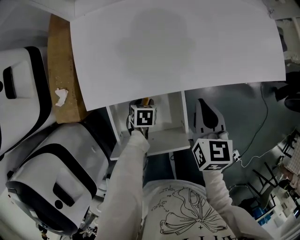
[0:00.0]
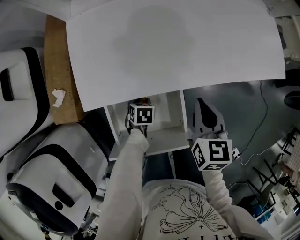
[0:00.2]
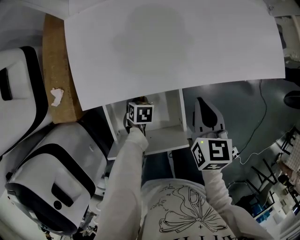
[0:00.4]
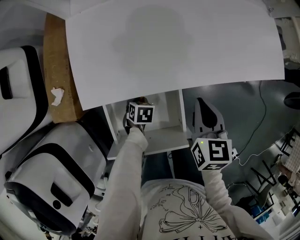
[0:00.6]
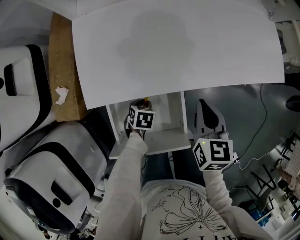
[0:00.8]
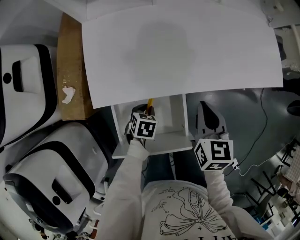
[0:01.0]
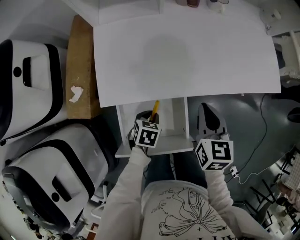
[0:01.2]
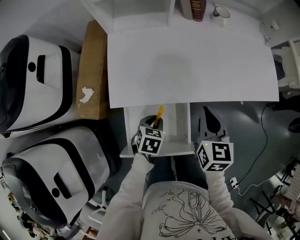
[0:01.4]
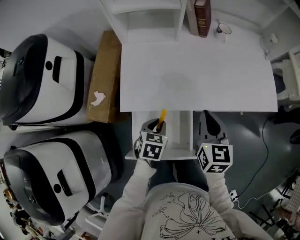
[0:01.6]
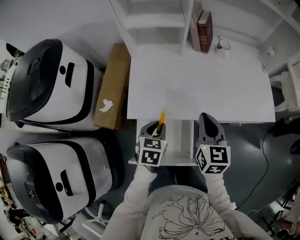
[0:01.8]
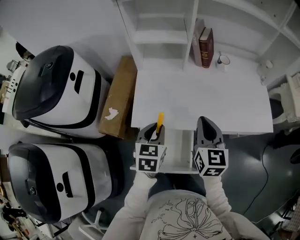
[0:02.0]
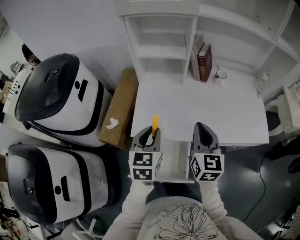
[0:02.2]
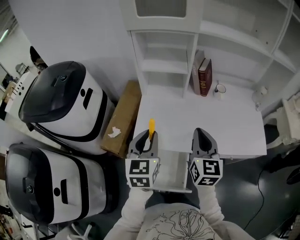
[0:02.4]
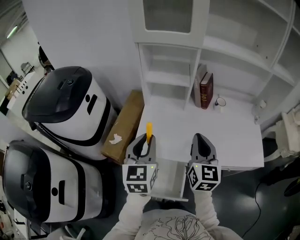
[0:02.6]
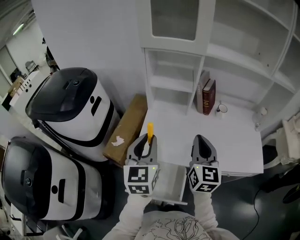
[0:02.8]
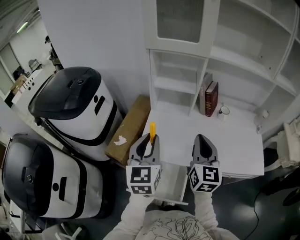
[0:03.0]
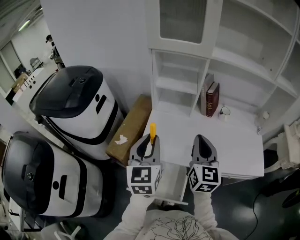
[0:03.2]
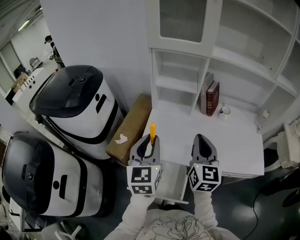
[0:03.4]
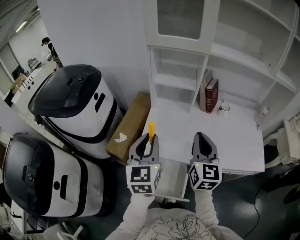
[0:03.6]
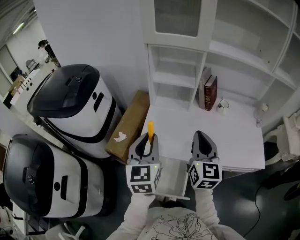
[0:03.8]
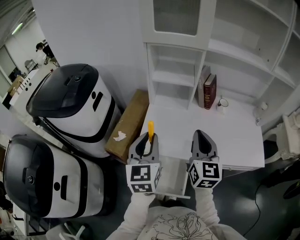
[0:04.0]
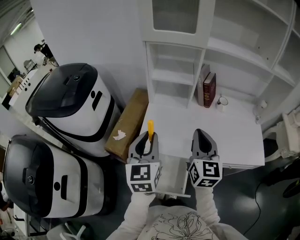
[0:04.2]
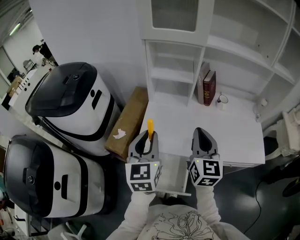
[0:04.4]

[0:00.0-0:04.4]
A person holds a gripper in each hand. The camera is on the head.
0:00.0 to 0:01.4: The left gripper shifts roughly 15 cm upward, and closes up; the right gripper shifts some 10 cm upward.
0:01.4 to 0:03.0: The left gripper is displaced upward by some 40 cm, and angles its fingers upward, by roughly 50 degrees, while the right gripper is displaced upward by roughly 25 cm, and changes its angle by roughly 30 degrees.
0:03.0 to 0:04.4: The grippers stay close to where they were, moving slightly.

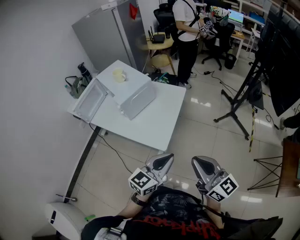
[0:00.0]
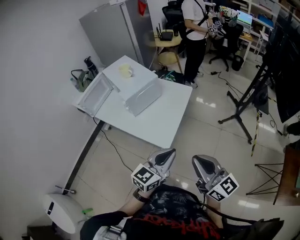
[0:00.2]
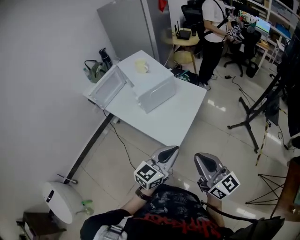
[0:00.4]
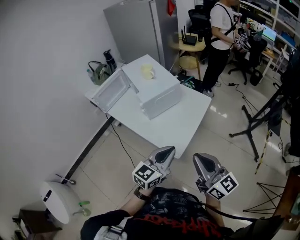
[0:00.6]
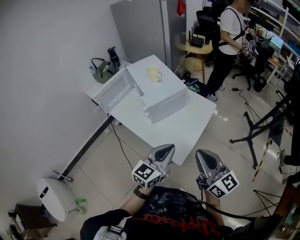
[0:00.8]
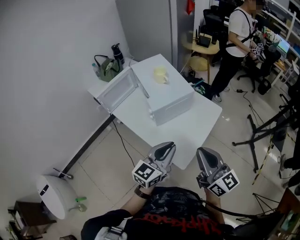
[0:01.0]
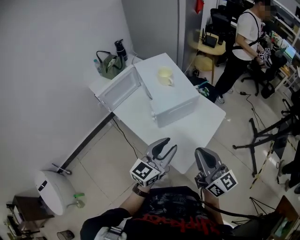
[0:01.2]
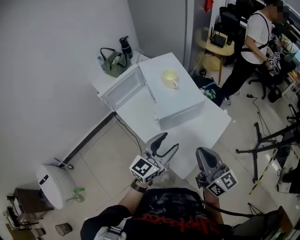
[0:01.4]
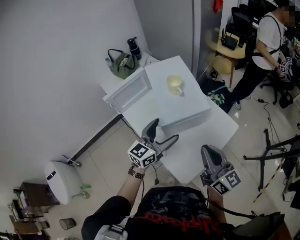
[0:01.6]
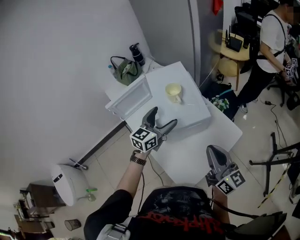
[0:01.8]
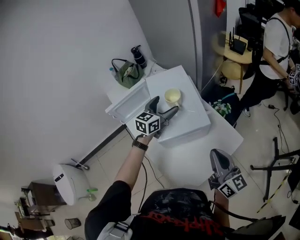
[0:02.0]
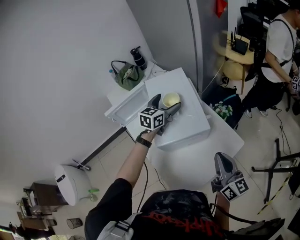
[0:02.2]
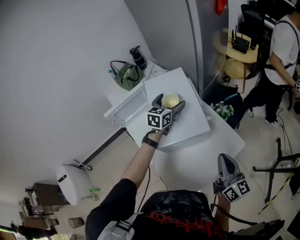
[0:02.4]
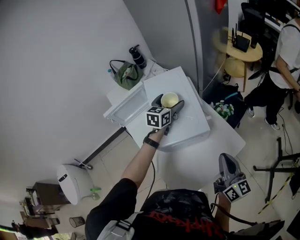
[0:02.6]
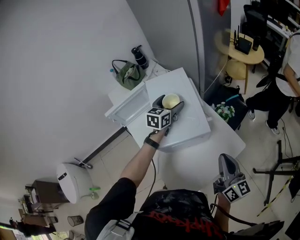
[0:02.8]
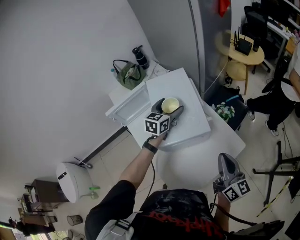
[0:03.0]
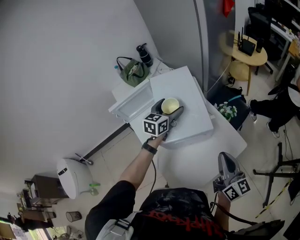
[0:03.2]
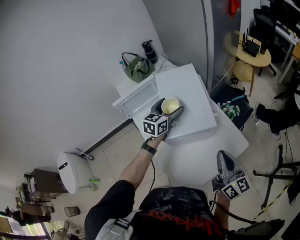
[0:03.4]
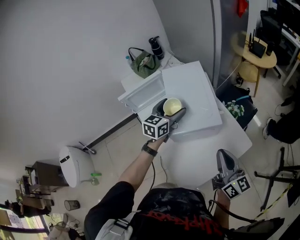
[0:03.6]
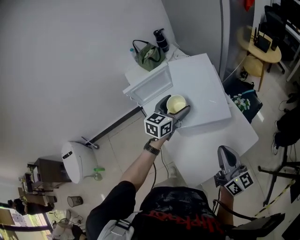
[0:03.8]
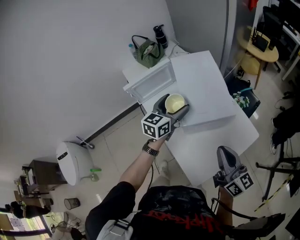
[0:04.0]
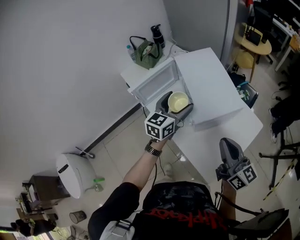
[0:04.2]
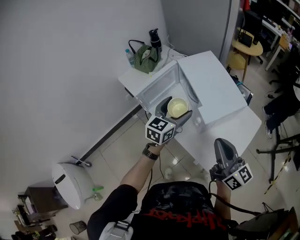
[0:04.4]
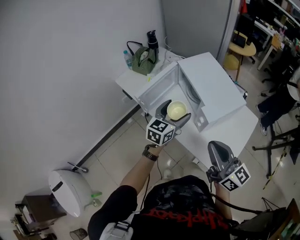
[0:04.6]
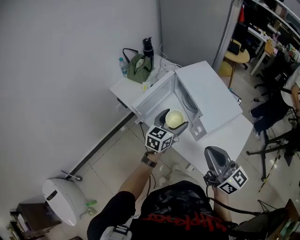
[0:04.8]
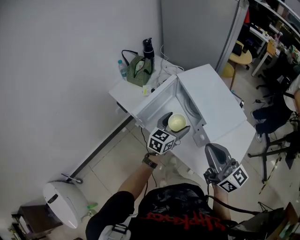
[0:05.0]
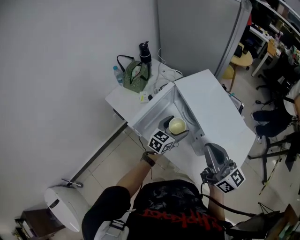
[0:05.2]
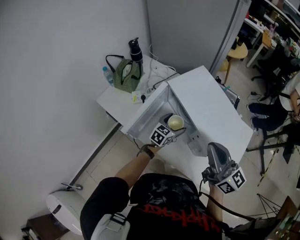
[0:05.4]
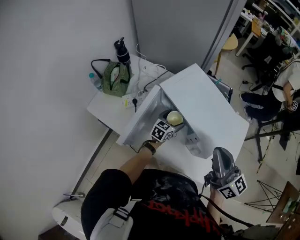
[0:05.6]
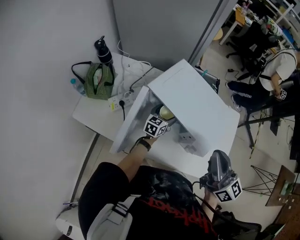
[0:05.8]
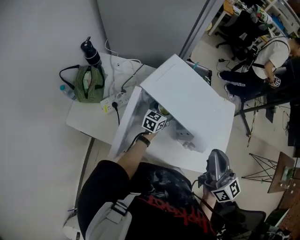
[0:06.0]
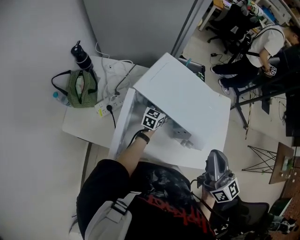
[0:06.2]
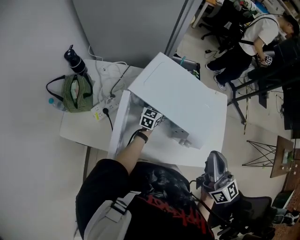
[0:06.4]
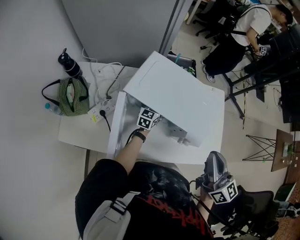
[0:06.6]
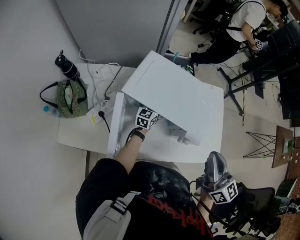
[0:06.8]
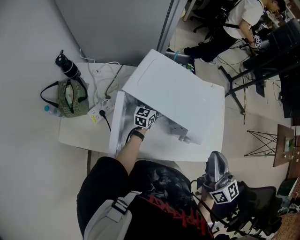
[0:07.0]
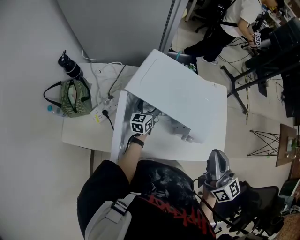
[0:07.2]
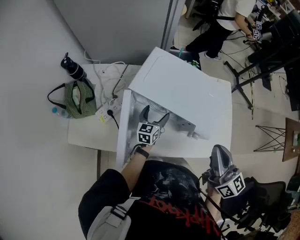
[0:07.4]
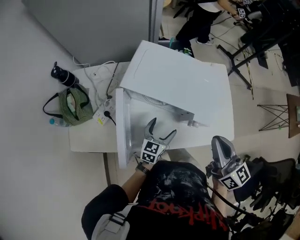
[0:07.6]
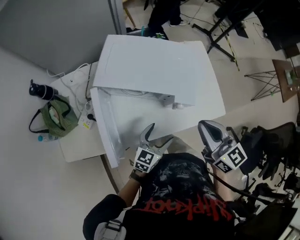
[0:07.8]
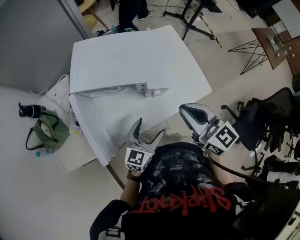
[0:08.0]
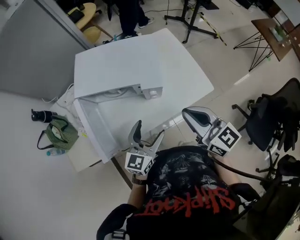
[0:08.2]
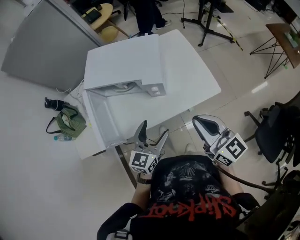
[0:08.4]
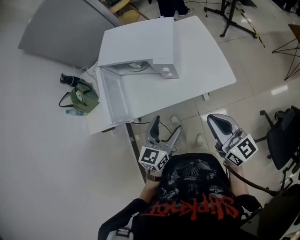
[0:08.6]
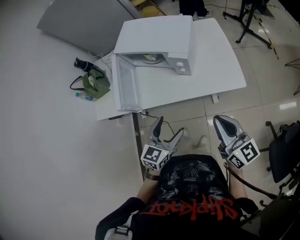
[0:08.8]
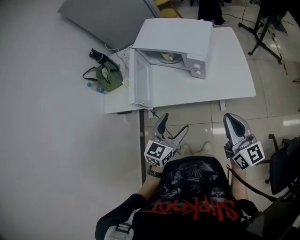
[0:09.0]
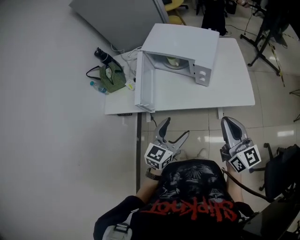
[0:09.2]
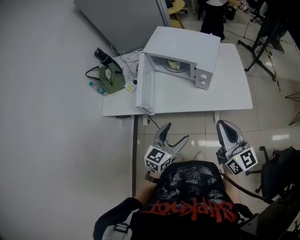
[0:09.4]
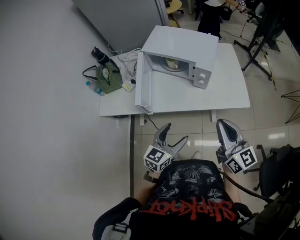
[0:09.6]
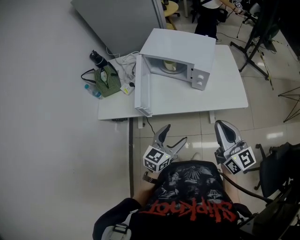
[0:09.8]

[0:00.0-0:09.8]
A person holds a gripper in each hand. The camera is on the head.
0:00.0 to 0:01.4: Both grippers travel together forward and to the left, roughly 35 cm. The left gripper rotates roughly 30 degrees, and opens its fingers.
0:01.4 to 0:02.8: The left gripper travels forward by approximately 40 cm, changes its angle by some 30 degrees, and opens its fingers. Meanwhile the right gripper heads forward and to the right, covering some 25 cm.
0:02.8 to 0:04.2: The left gripper goes about 25 cm to the left and backward, while the right gripper shifts some 25 cm to the left.
0:04.2 to 0:05.6: The left gripper goes some 25 cm downward, and changes its angle by approximately 40 degrees, while the right gripper ends up roughly 20 cm from where it was, and swivels about 20 degrees.
0:05.6 to 0:07.0: The right gripper swivels about 30 degrees, while the left gripper moves forward, about 10 cm.
0:07.0 to 0:08.4: The left gripper goes roughly 40 cm backward, to the right and upward, and changes its angle by some 20 degrees, while the right gripper goes roughly 20 cm backward and to the right.
0:08.4 to 0:09.8: Both grippers travel together backward and to the left, roughly 15 cm.

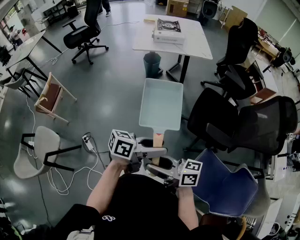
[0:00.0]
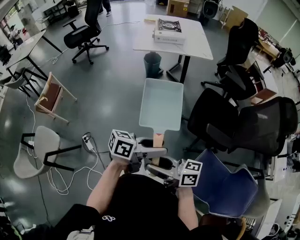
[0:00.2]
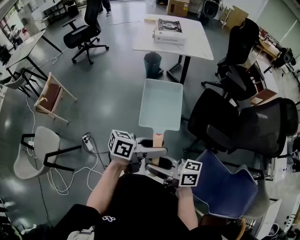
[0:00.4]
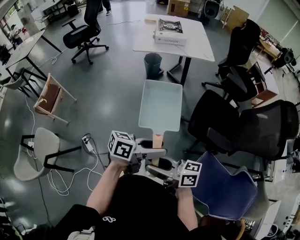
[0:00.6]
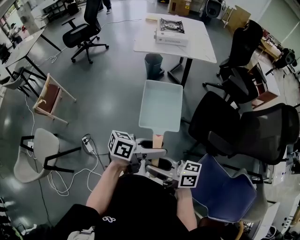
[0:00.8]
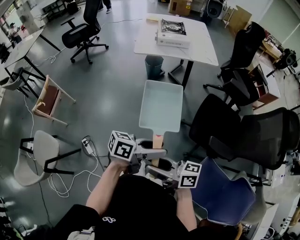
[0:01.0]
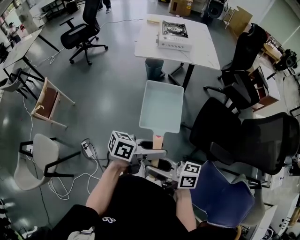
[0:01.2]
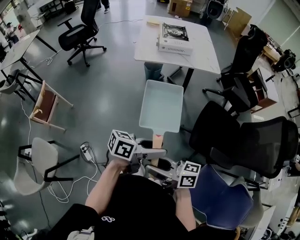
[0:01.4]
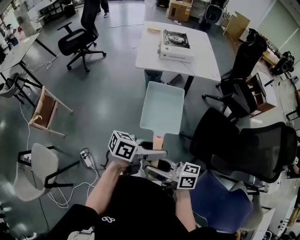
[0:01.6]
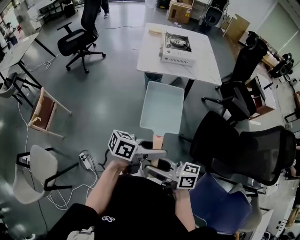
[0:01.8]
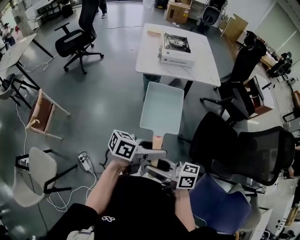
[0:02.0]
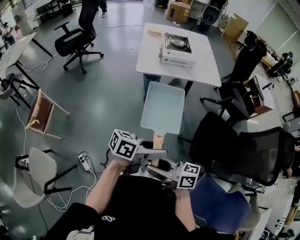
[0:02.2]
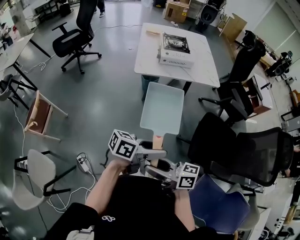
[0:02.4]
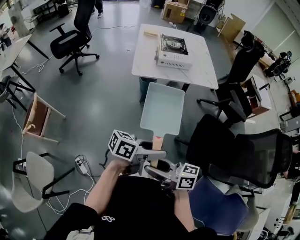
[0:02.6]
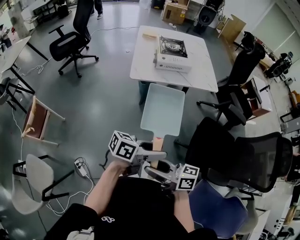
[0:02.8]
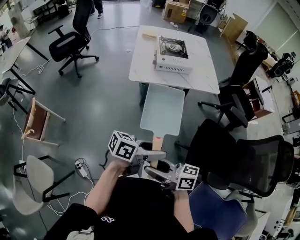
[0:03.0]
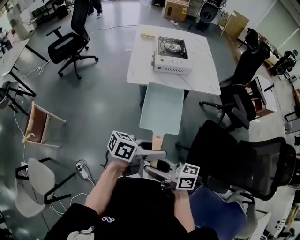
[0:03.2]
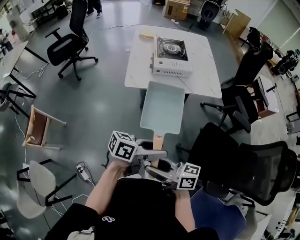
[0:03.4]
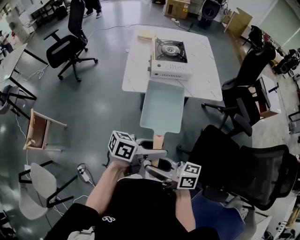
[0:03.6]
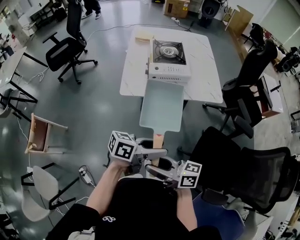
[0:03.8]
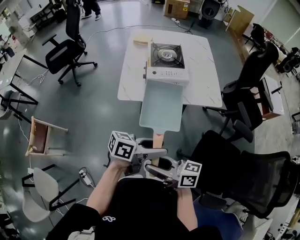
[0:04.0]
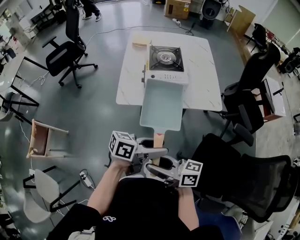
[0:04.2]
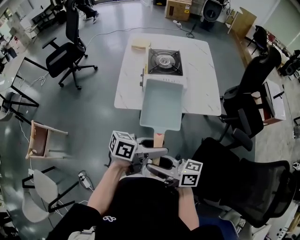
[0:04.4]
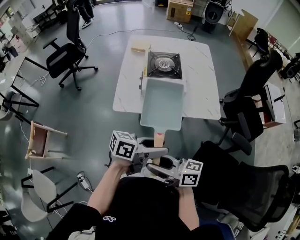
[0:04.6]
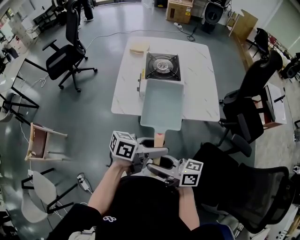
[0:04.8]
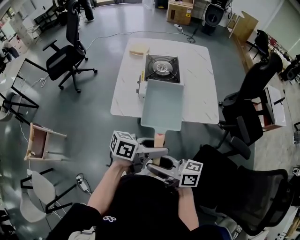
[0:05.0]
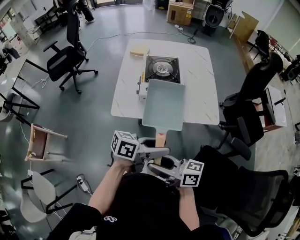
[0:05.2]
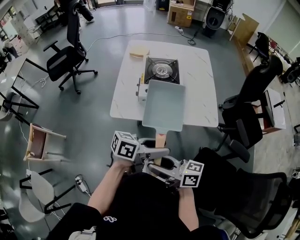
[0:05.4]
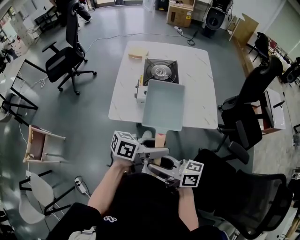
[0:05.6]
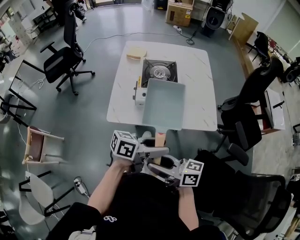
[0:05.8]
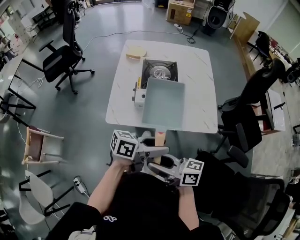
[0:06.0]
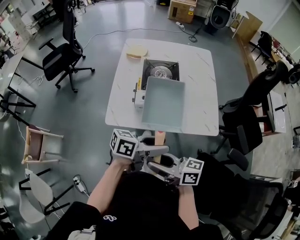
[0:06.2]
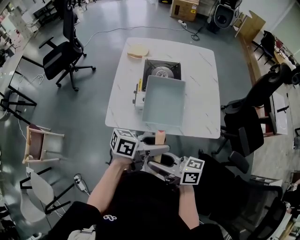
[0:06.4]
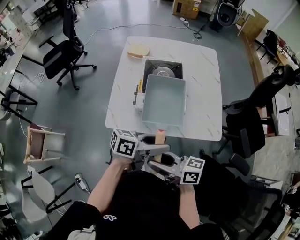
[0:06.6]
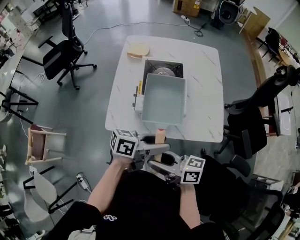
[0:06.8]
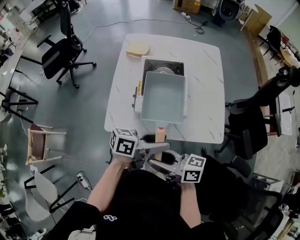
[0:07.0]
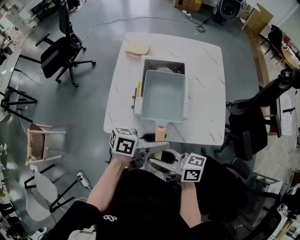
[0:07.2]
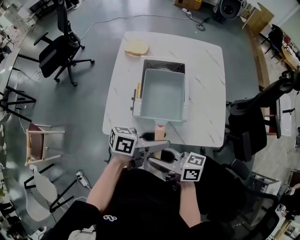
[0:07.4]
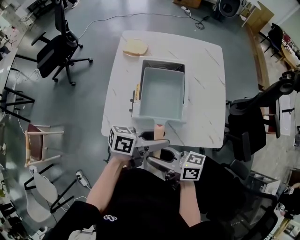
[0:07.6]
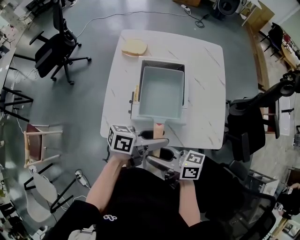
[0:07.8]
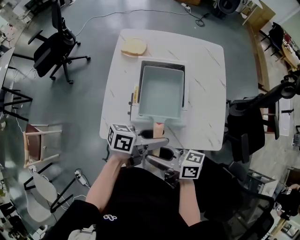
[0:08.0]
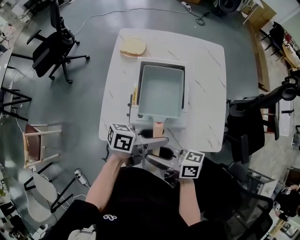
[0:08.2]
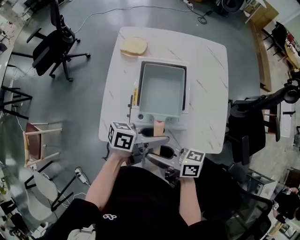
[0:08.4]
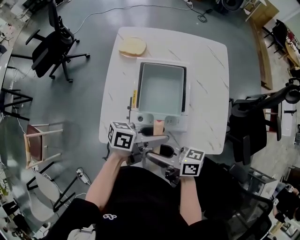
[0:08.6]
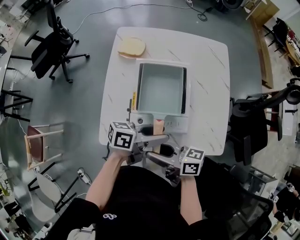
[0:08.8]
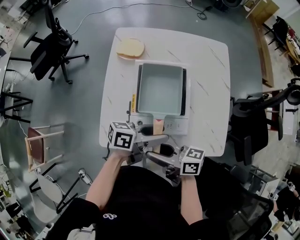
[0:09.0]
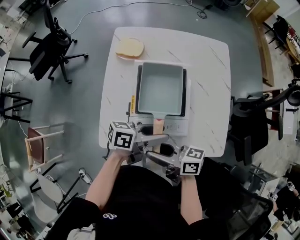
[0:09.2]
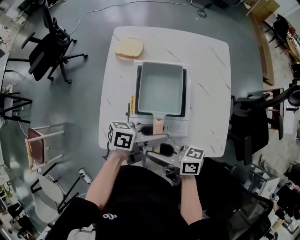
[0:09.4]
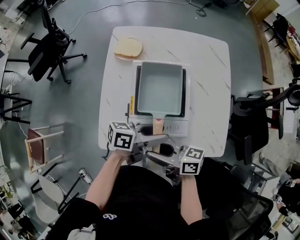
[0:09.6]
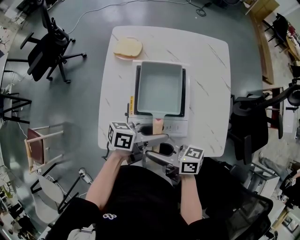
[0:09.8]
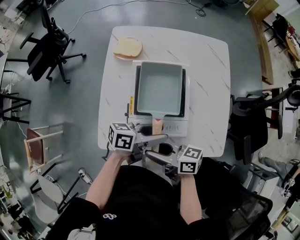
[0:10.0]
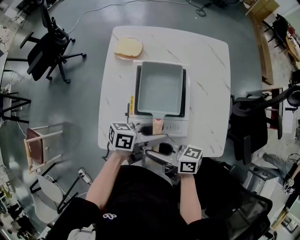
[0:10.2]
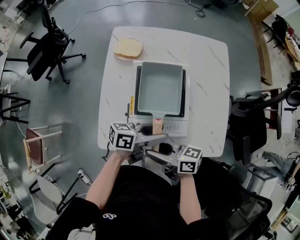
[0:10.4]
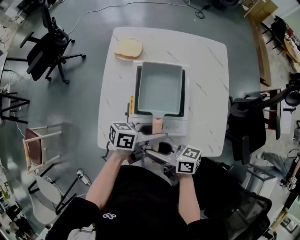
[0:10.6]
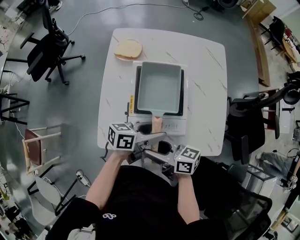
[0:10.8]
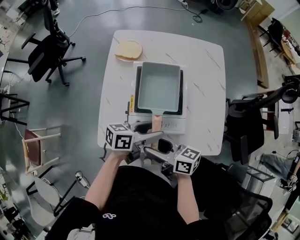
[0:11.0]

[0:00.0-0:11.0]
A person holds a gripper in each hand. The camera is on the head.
0:00.0 to 0:01.6: The right gripper ends up roughly 20 cm from where it was. The left gripper changes place by approximately 20 cm.
0:01.6 to 0:03.2: The left gripper changes place by roughly 15 cm; the right gripper moves about 15 cm.
0:03.2 to 0:04.8: The right gripper shifts by some 25 cm. The left gripper ends up roughly 25 cm from where it was.
0:04.8 to 0:06.2: The right gripper changes place by roughly 10 cm. The left gripper changes place by roughly 10 cm.
0:06.2 to 0:07.8: The left gripper ends up roughly 15 cm from where it was. Meanwhile the right gripper shifts by some 15 cm.
0:07.8 to 0:09.4: The left gripper ends up some 10 cm from where it was. Meanwhile the right gripper changes place by roughly 10 cm.
0:09.4 to 0:11.0: The grippers stay close to where they were, moving slightly.
